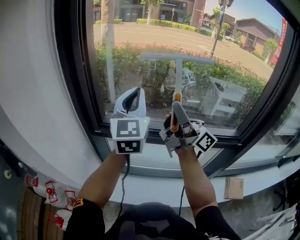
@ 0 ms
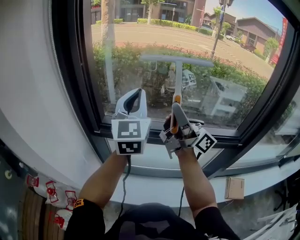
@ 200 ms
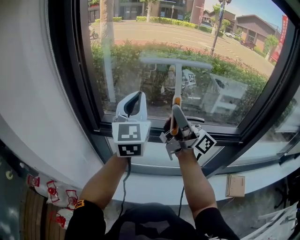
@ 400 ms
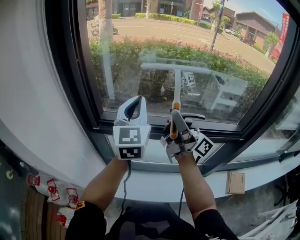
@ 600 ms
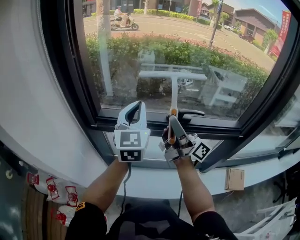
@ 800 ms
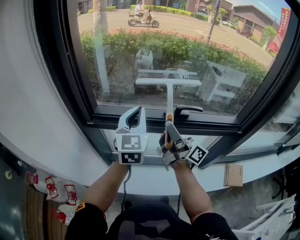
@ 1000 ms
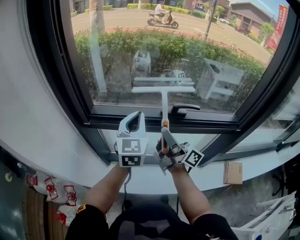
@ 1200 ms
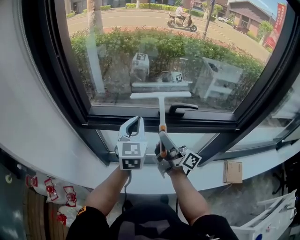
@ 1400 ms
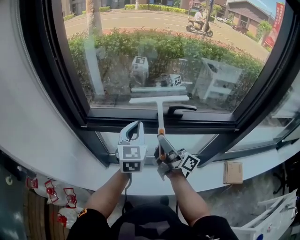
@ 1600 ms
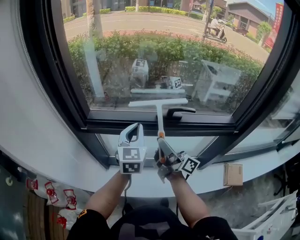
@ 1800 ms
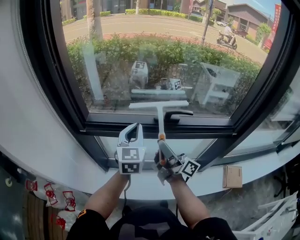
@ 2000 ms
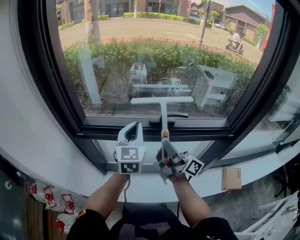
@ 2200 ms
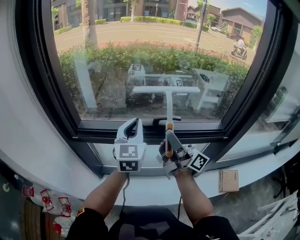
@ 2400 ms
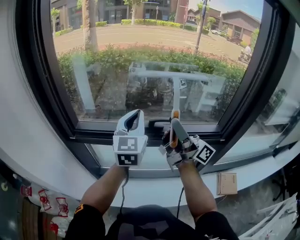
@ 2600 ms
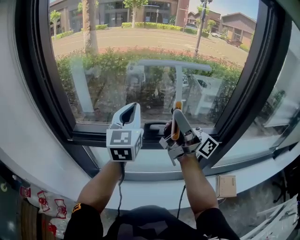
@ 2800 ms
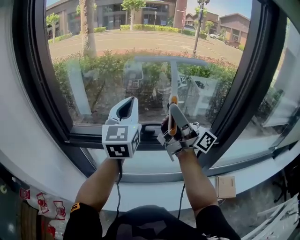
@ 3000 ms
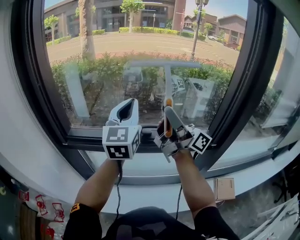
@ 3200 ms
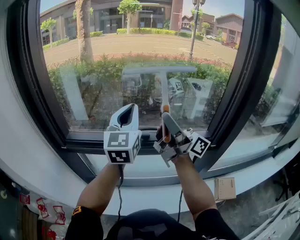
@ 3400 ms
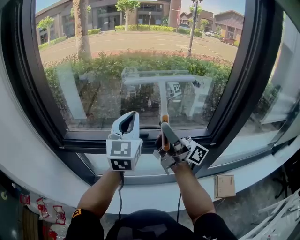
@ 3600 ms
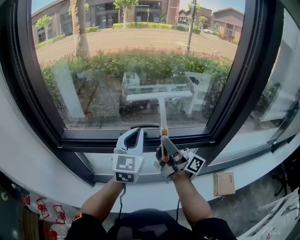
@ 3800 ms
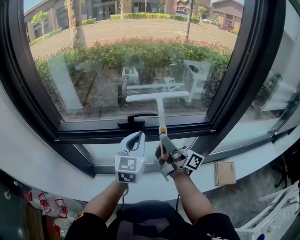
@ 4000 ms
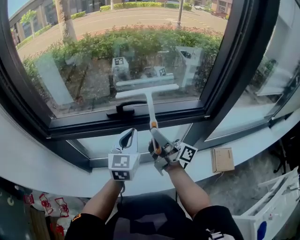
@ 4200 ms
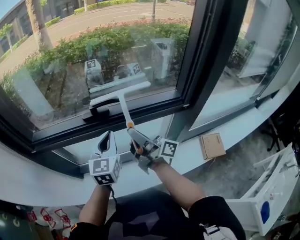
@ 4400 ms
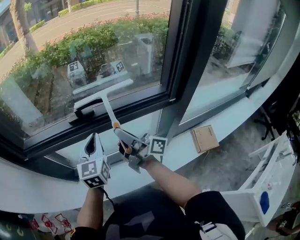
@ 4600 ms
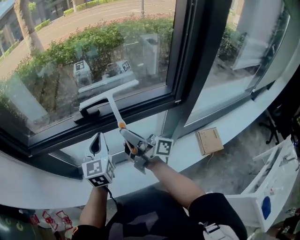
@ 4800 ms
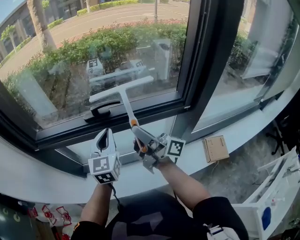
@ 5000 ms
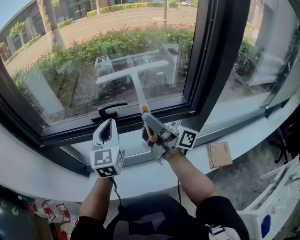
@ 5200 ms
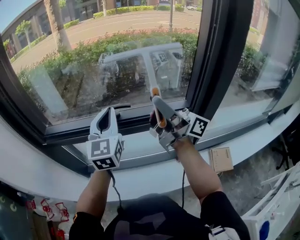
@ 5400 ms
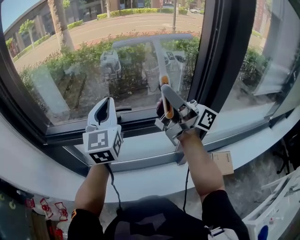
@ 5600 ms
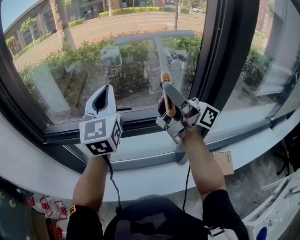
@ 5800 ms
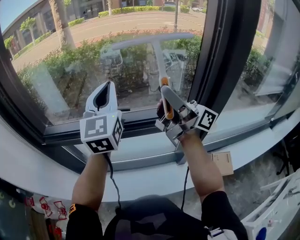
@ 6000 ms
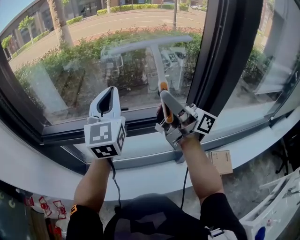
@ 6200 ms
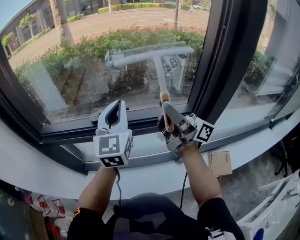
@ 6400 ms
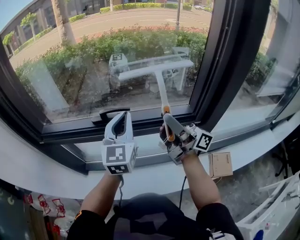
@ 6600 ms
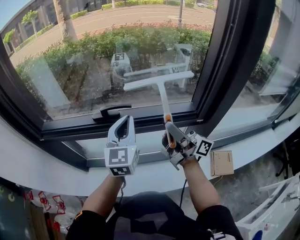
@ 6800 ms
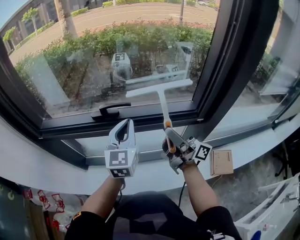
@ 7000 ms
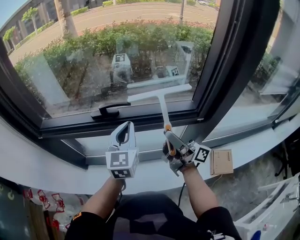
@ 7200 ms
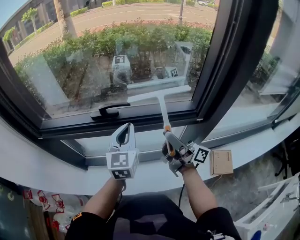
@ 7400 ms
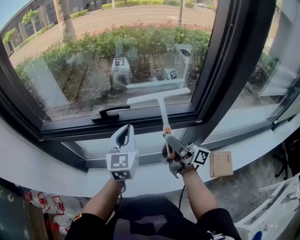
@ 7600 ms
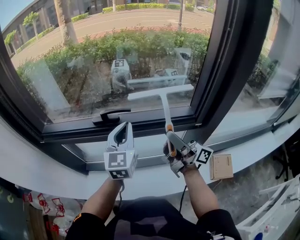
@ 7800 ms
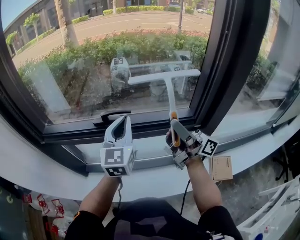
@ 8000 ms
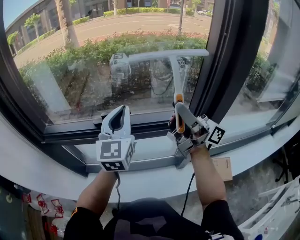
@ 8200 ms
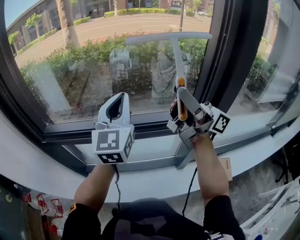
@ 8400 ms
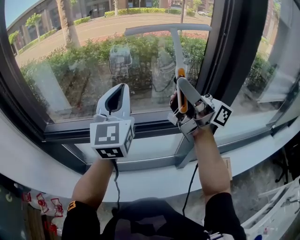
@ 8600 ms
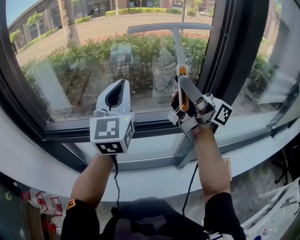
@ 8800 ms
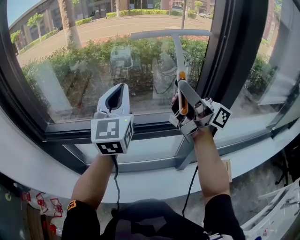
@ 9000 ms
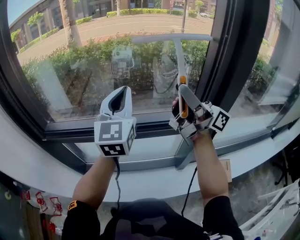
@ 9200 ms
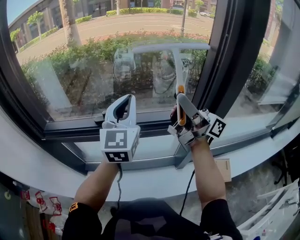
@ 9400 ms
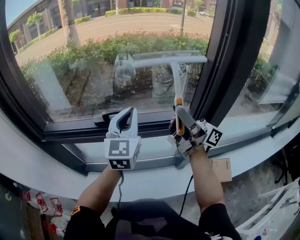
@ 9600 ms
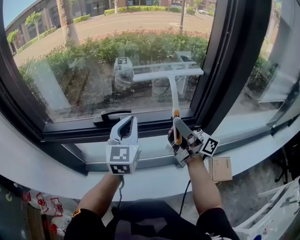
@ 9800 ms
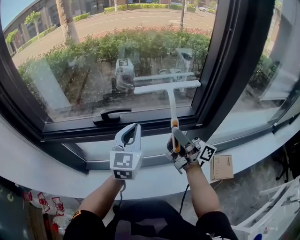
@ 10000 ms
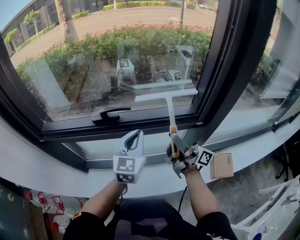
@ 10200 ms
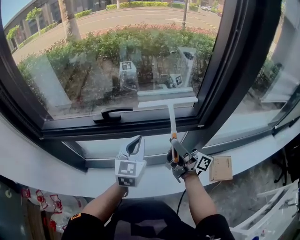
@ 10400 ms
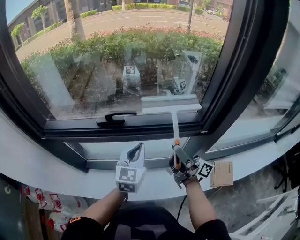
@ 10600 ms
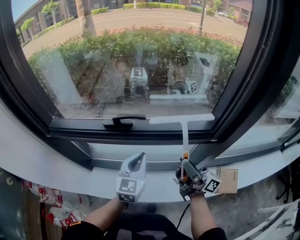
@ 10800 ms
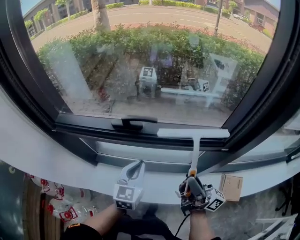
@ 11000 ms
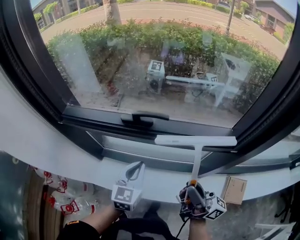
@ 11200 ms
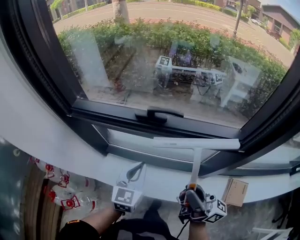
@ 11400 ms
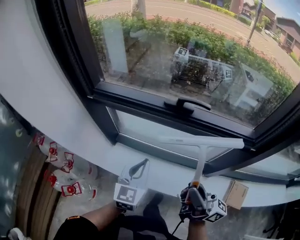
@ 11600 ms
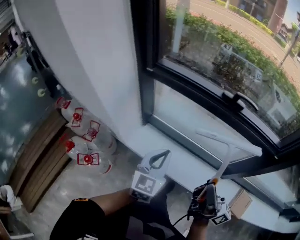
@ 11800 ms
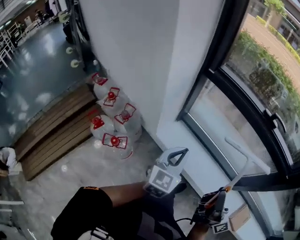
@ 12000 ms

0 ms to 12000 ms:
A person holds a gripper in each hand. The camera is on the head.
0 ms to 1600 ms: The grippers both shift downward by some 20 cm. The left gripper changes its angle by roughly 20 degrees. The right gripper swivels approximately 20 degrees.
1600 ms to 3000 ms: The two grippers go approximately 25 cm upward and to the right. The right gripper changes its angle by some 30 degrees.
3000 ms to 4400 ms: Both grippers travel together downward, some 25 cm. The right gripper rotates about 20 degrees; the left gripper changes its angle by approximately 20 degrees.
4400 ms to 6000 ms: The left gripper goes some 25 cm upward, and turns by some 20 degrees; the right gripper travels upward and to the right by roughly 25 cm, and rotates approximately 20 degrees.
6000 ms to 7600 ms: Both grippers move downward, approximately 20 cm.
7600 ms to 9000 ms: The two grippers go about 20 cm upward. The right gripper turns by approximately 20 degrees.
9000 ms to 10400 ms: The grippers both shift downward by some 25 cm. The left gripper swivels some 20 degrees, while the right gripper turns by about 30 degrees.
10400 ms to 12000 ms: The pair of grippers is taken to the left and backward, about 40 cm. The left gripper turns by roughly 30 degrees.

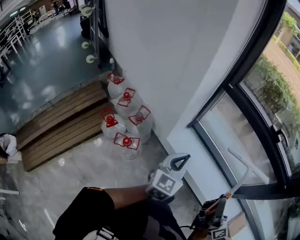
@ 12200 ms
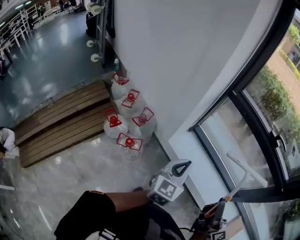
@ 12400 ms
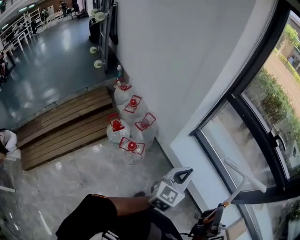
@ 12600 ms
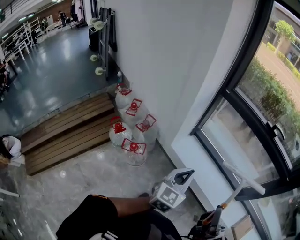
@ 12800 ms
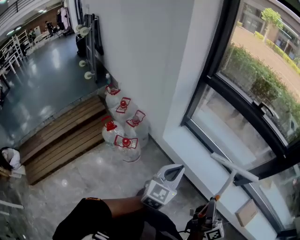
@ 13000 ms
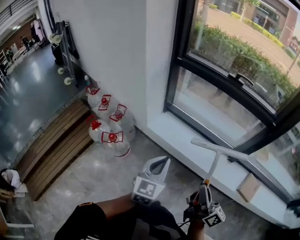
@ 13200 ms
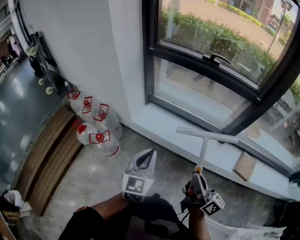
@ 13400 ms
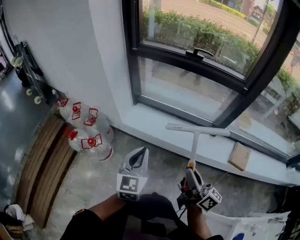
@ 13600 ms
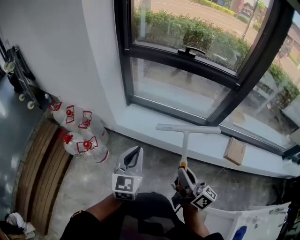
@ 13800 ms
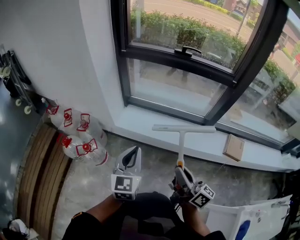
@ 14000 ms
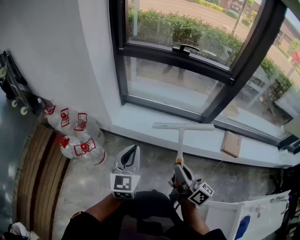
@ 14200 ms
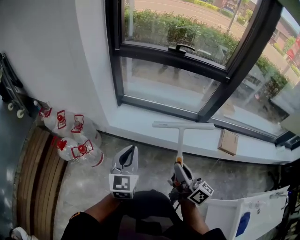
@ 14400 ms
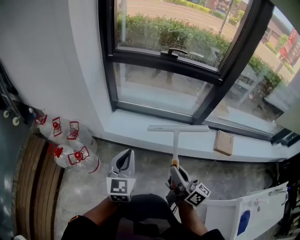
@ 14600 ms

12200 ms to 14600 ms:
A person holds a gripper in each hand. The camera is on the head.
12200 ms to 13400 ms: Both grippers travel together backward and to the right, about 25 cm.
13400 ms to 14600 ms: The right gripper goes roughly 5 cm to the left.

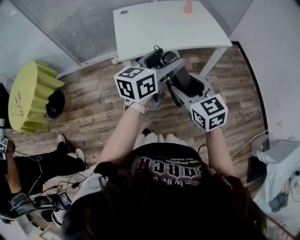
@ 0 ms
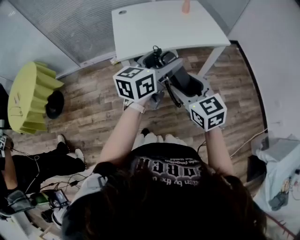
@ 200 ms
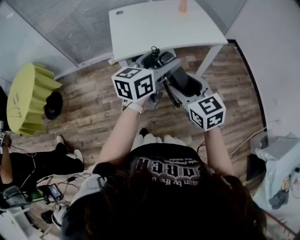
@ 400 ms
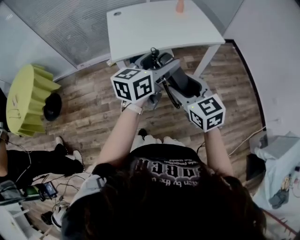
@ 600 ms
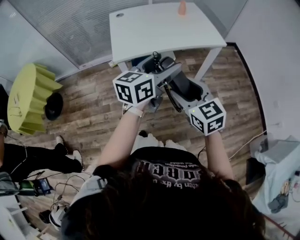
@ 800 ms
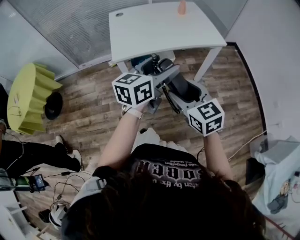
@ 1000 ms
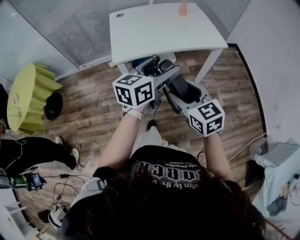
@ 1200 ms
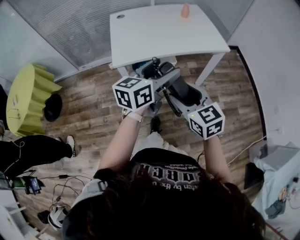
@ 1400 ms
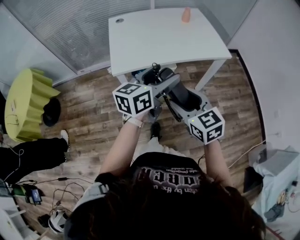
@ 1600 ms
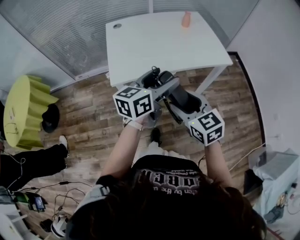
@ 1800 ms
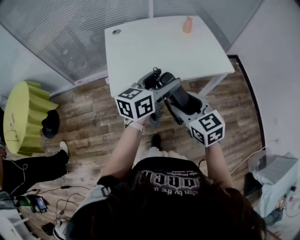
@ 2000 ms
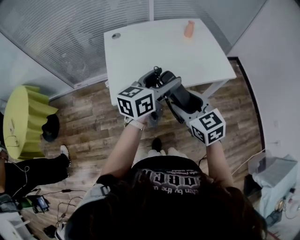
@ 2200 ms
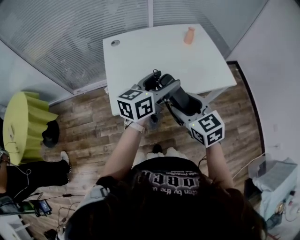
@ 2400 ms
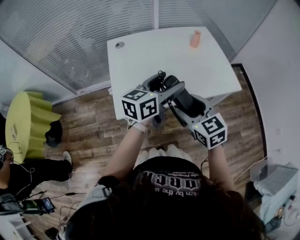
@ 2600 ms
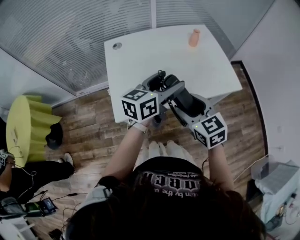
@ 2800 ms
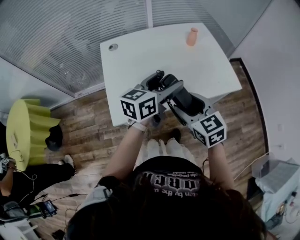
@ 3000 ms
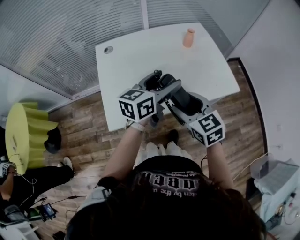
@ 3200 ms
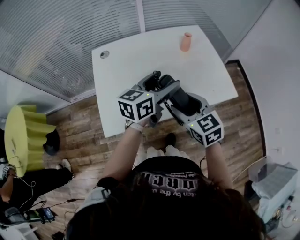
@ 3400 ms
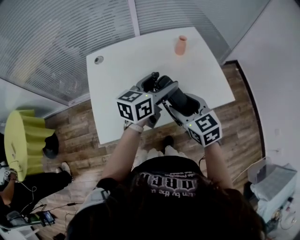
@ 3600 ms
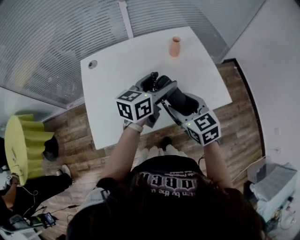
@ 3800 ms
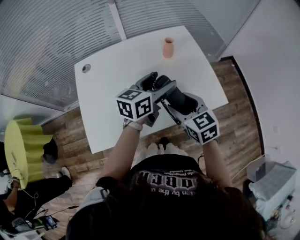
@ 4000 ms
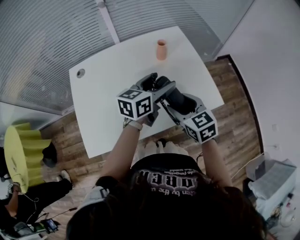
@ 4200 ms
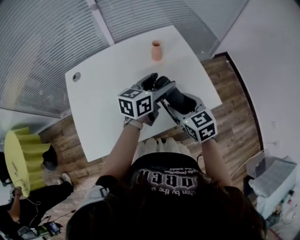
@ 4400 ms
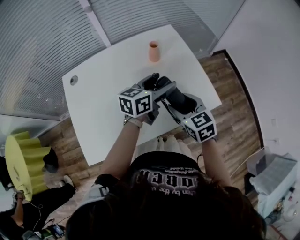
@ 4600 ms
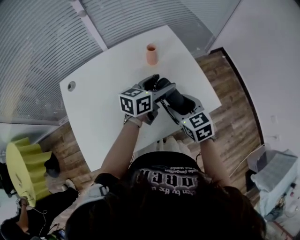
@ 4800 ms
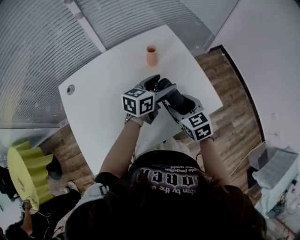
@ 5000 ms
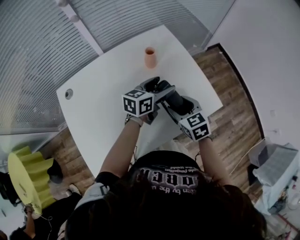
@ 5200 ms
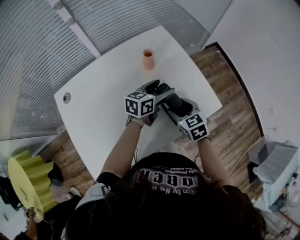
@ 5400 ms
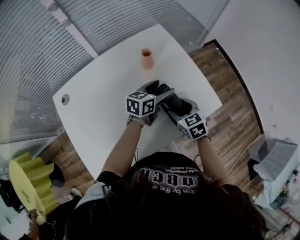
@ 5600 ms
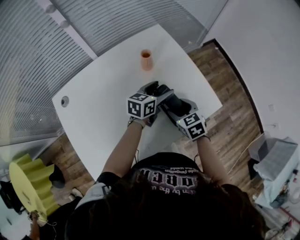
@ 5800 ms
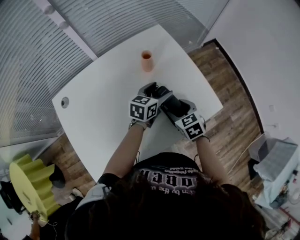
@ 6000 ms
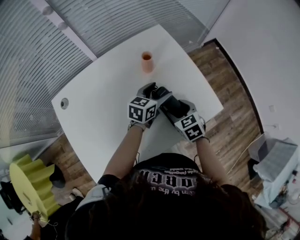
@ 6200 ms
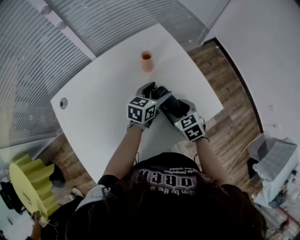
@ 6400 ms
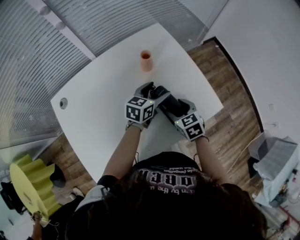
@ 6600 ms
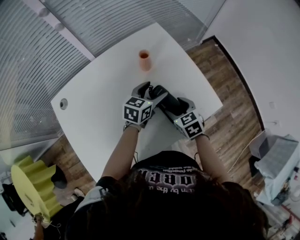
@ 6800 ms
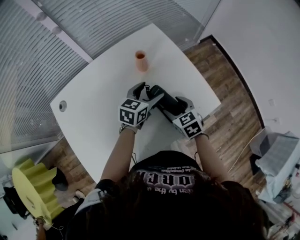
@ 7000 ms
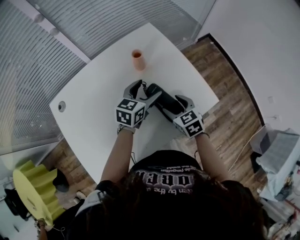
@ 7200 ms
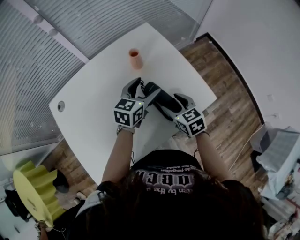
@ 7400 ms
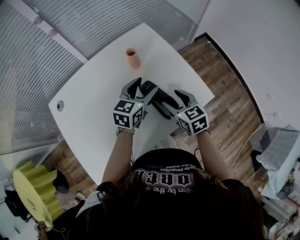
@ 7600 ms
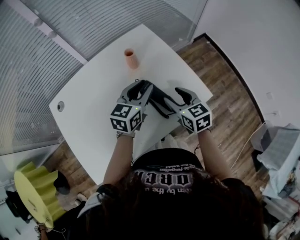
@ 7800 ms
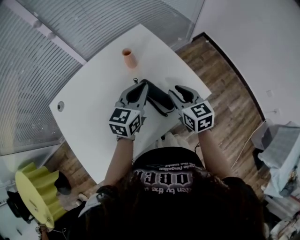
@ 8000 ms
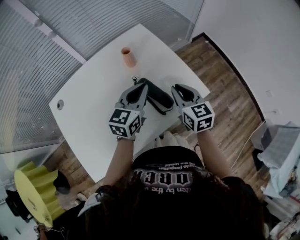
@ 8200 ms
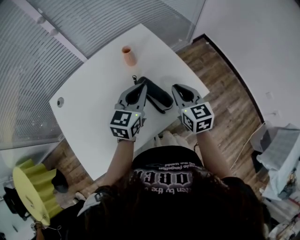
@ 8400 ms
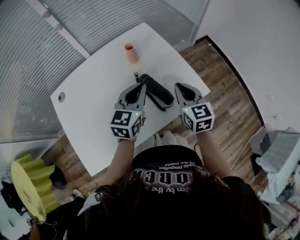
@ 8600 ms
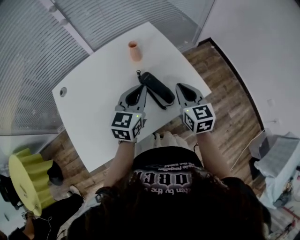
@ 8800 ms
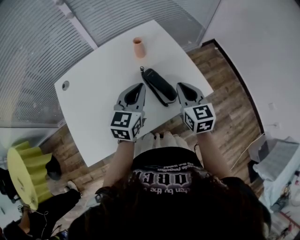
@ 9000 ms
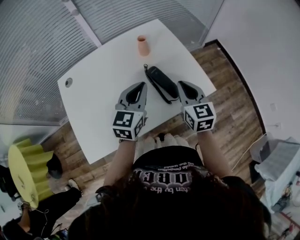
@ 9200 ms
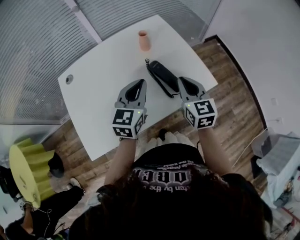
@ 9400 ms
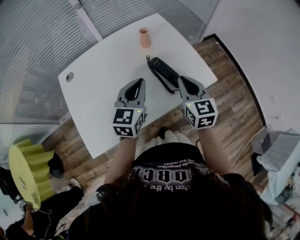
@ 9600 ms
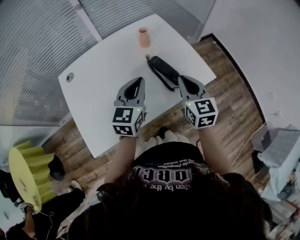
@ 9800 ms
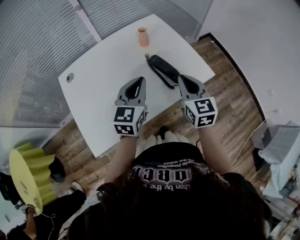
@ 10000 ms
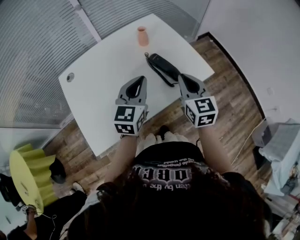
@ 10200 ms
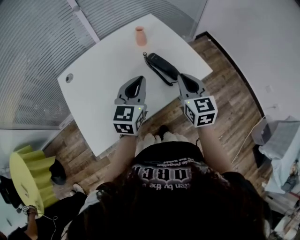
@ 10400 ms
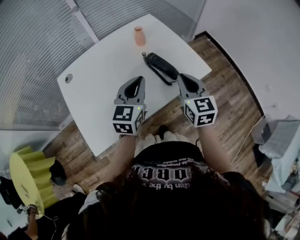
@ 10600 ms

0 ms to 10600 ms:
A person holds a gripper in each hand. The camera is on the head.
0 ms to 1600 ms: The right gripper ends up roughly 5 cm from where it was, while the left gripper is displaced forward by about 5 cm.
1600 ms to 3000 ms: The grippers both shift forward by approximately 25 cm.
3000 ms to 4600 ms: The grippers both shift forward and to the right by roughly 25 cm.
4600 ms to 6000 ms: The right gripper shifts approximately 10 cm downward. The left gripper is displaced downward and forward by roughly 15 cm.
6000 ms to 7600 ms: Both grippers travel together upward, about 5 cm.
7600 ms to 9000 ms: The right gripper travels upward by about 5 cm, and closes up. The left gripper heads backward and upward, covering some 10 cm, and closes.
9000 ms to 10600 ms: The two grippers go about 10 cm backward.
